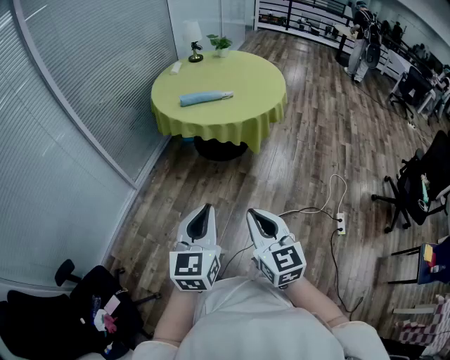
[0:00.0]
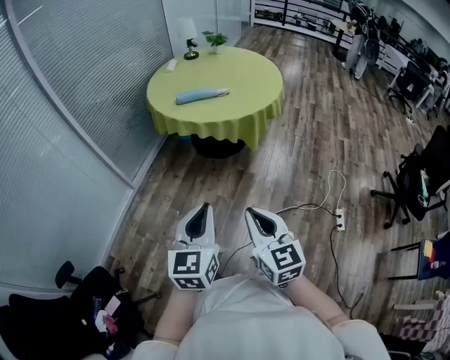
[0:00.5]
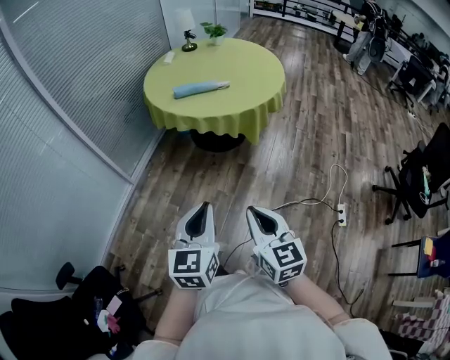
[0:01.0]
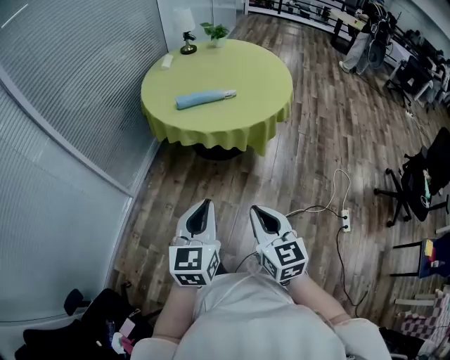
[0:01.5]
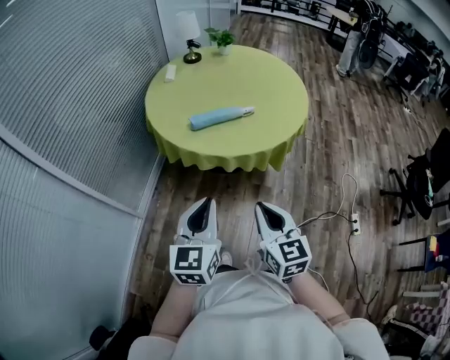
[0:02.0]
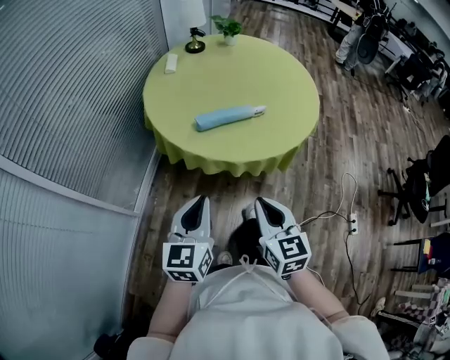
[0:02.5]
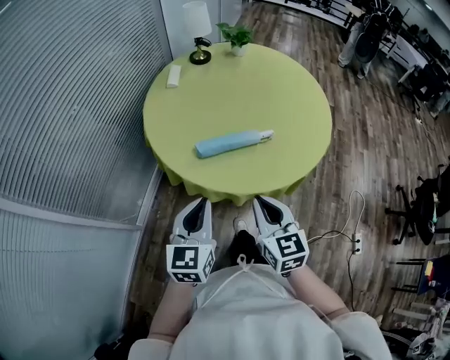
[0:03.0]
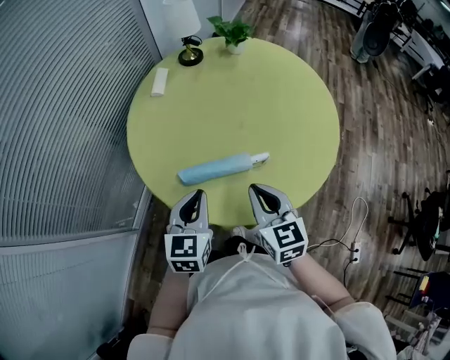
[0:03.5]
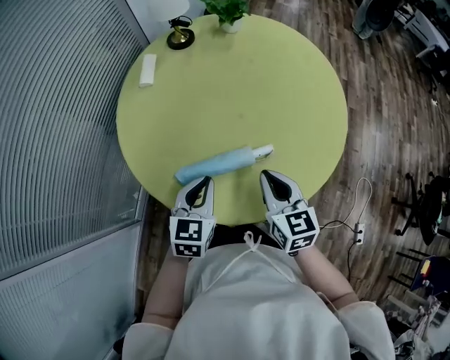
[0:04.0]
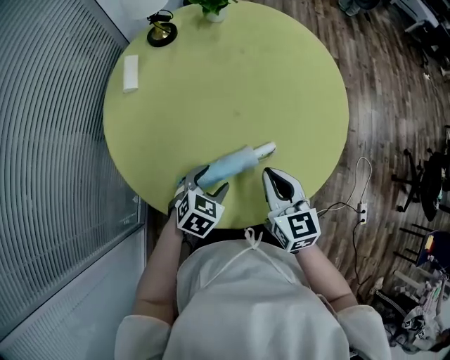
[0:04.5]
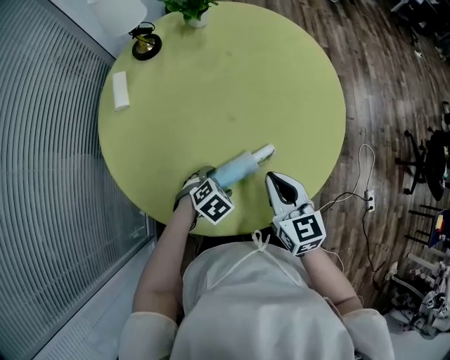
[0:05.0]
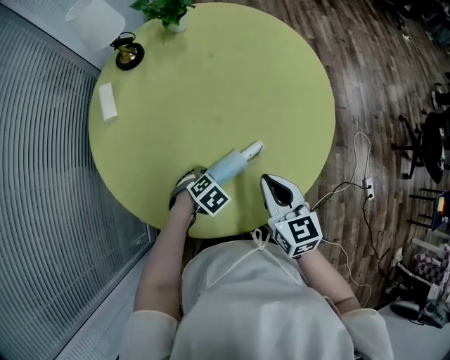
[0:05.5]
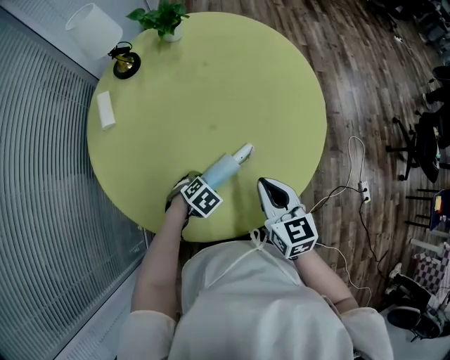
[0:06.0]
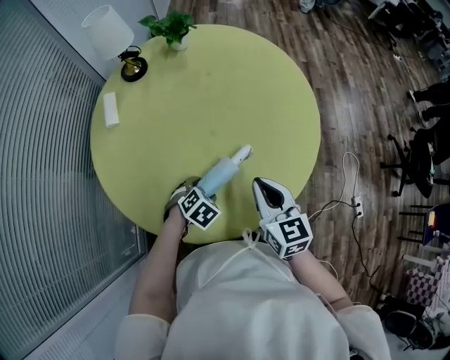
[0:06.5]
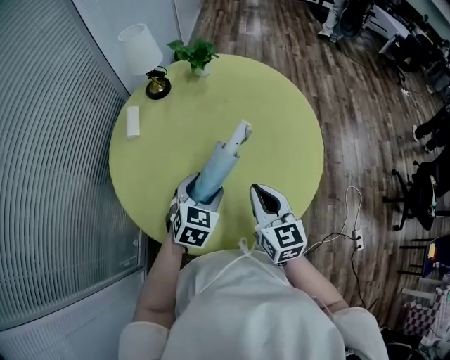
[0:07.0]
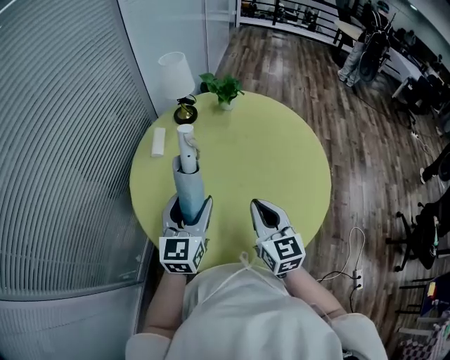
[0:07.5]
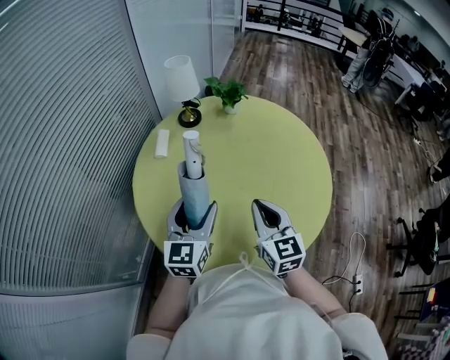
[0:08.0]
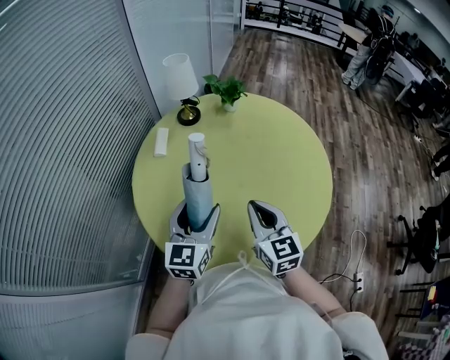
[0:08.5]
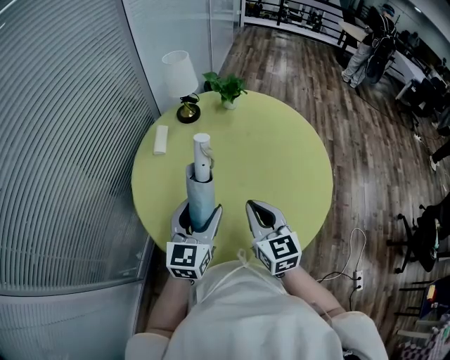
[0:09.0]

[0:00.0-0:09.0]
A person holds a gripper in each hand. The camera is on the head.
0:00.0 to 0:02.0: The grippers both shift forward and to the left by about 40 cm.
0:02.0 to 0:04.5: Both grippers are carried forward, roughly 50 cm. The left gripper shifts about 25 cm downward, points its fingers some 40 degrees further downward, and opens.
0:04.5 to 0:07.0: The right gripper travels upward by about 10 cm; the left gripper moves upward, roughly 10 cm.
0:07.0 to 0:09.0: The left gripper heads upward and to the left, covering approximately 15 cm, and turns by approximately 40 degrees. The right gripper is displaced to the left by roughly 5 cm.

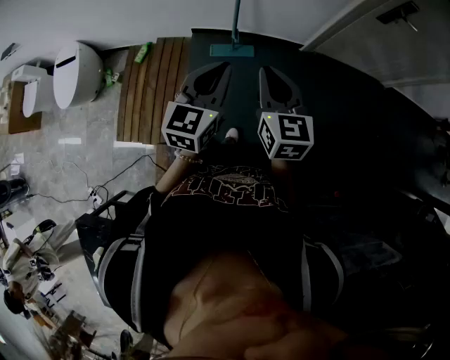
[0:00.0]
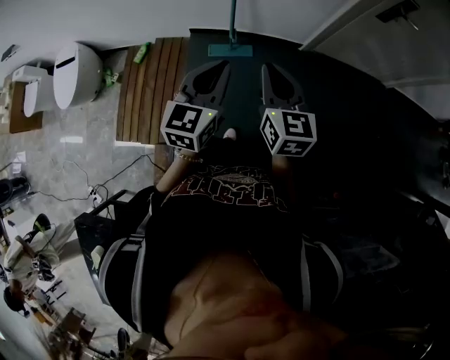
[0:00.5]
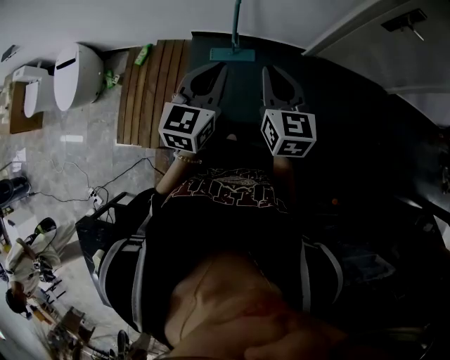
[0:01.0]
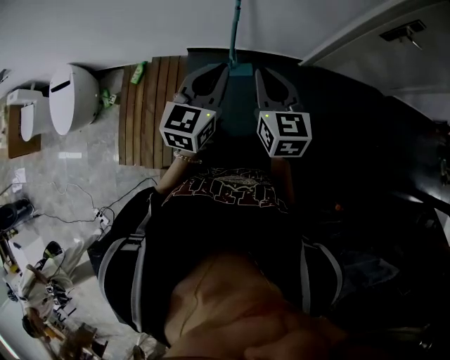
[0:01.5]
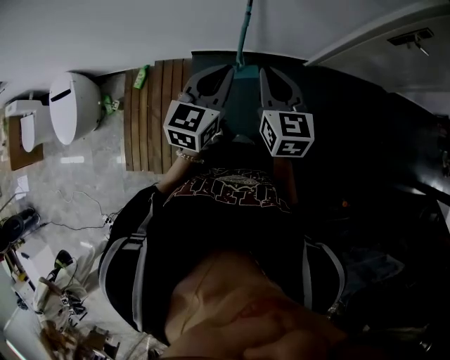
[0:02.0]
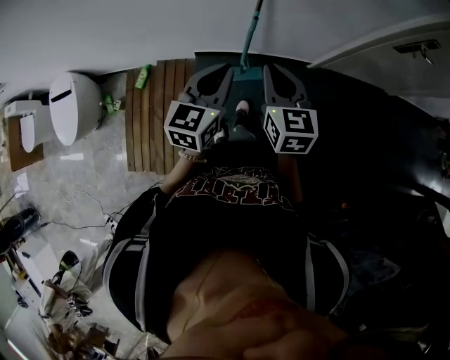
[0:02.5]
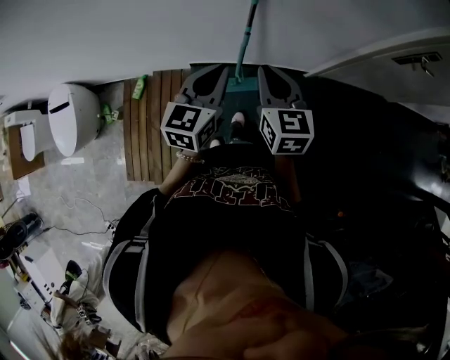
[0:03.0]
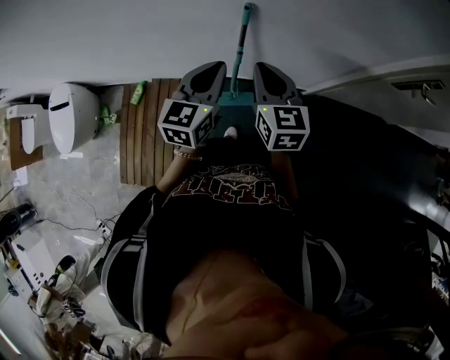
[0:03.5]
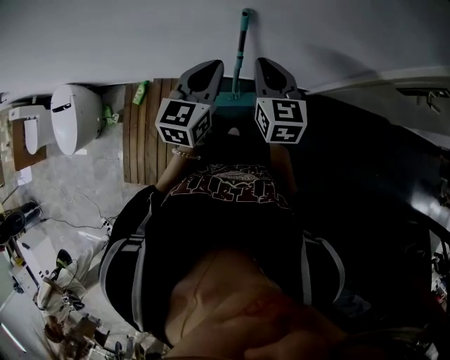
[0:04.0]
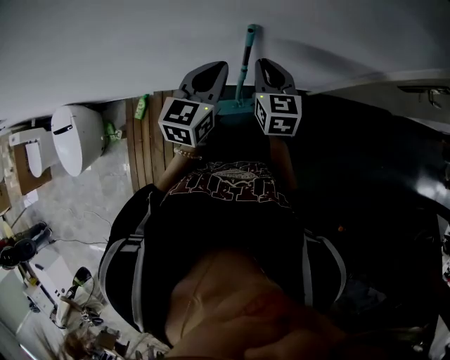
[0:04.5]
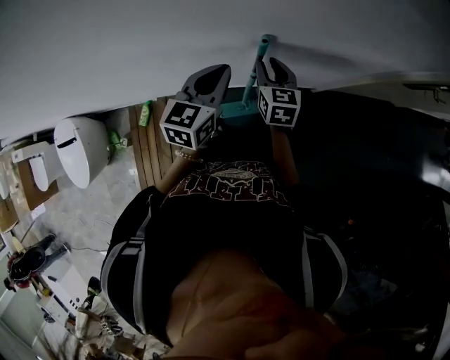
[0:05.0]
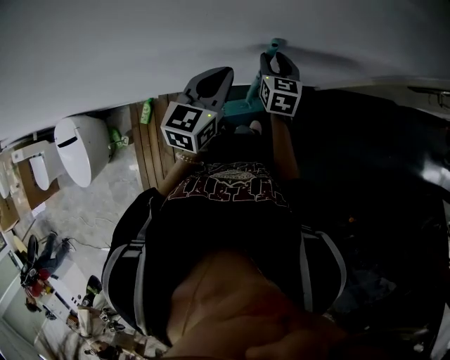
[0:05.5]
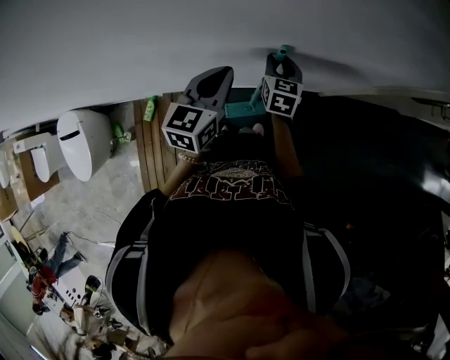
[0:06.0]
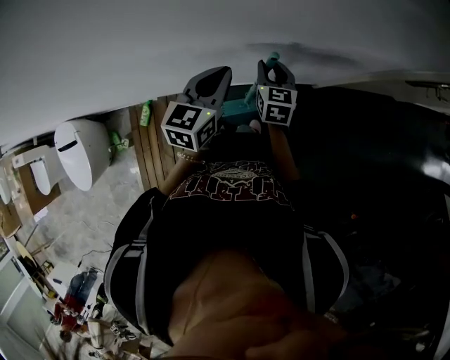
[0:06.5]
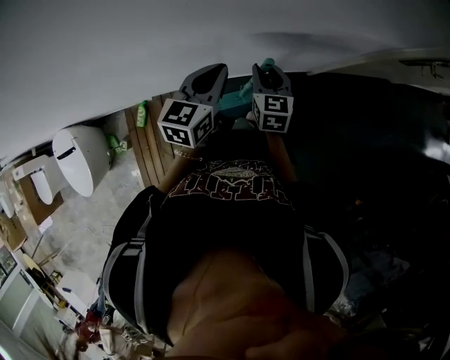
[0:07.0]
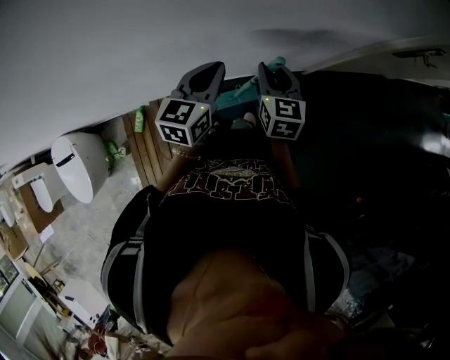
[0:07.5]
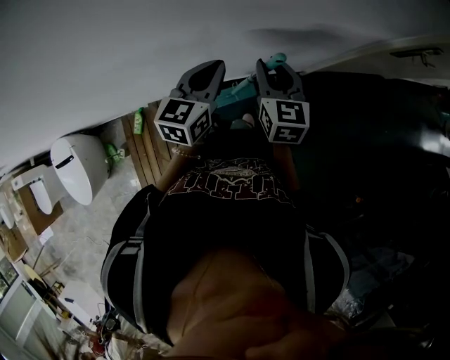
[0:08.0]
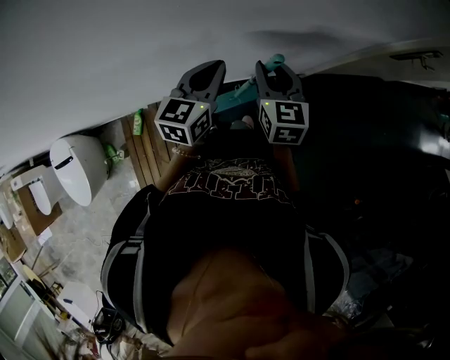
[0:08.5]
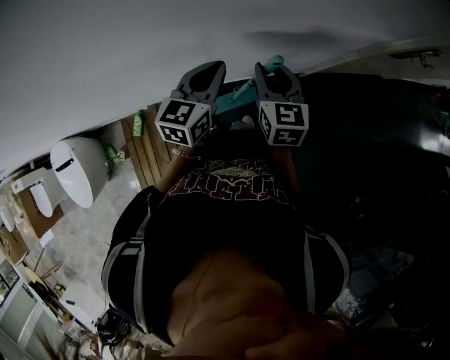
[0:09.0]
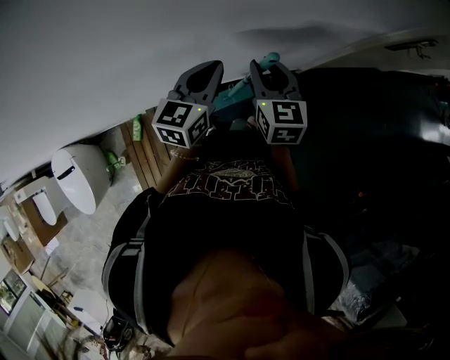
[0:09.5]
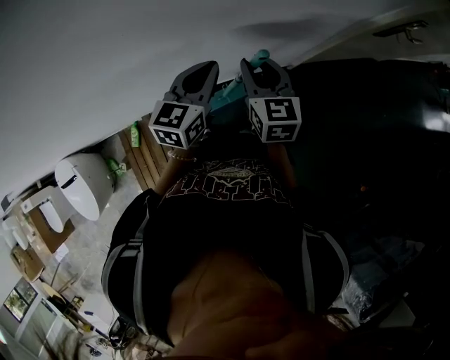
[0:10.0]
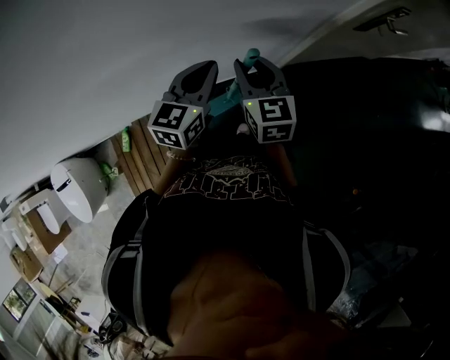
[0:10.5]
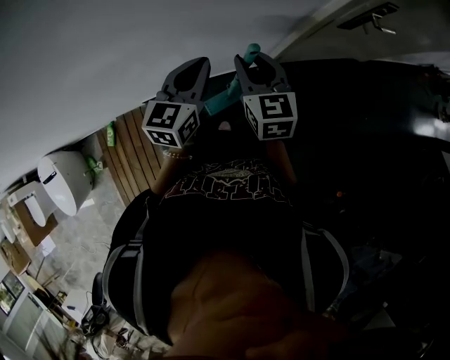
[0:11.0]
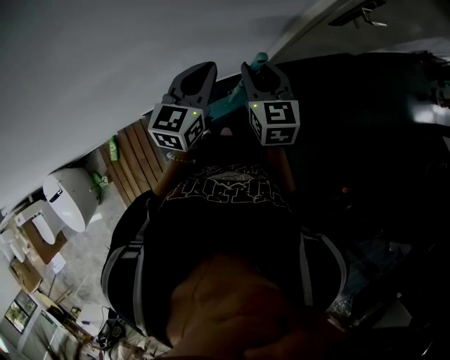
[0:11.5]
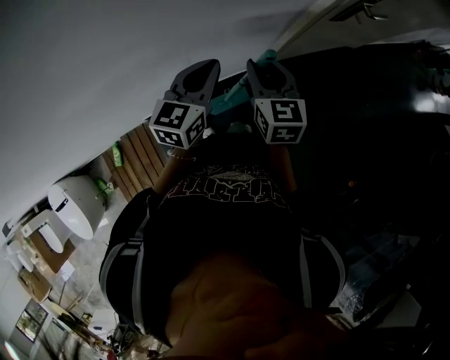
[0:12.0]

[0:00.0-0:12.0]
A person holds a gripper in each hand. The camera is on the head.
0:00.0 to 0:02.0: Both grippers move forward and to the left, some 25 cm.
0:02.0 to 0:04.0: The grippers both shift forward by approximately 30 cm.
0:04.0 to 0:06.0: The left gripper heads to the left and forward, covering some 15 cm. The right gripper goes approximately 25 cm forward, downward and to the left, swivels some 20 degrees, and opens its fingers.
0:06.0 to 0:08.0: The left gripper moves to the right, about 5 cm, while the right gripper travels backward, upward and to the right by some 15 cm.
0:08.0 to 0:10.0: Both grippers move to the right, about 5 cm.
0:10.0 to 0:12.0: The two grippers go approximately 20 cm to the right.

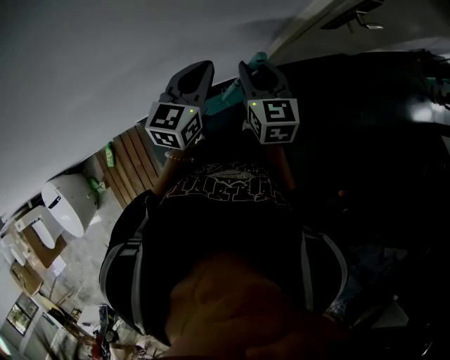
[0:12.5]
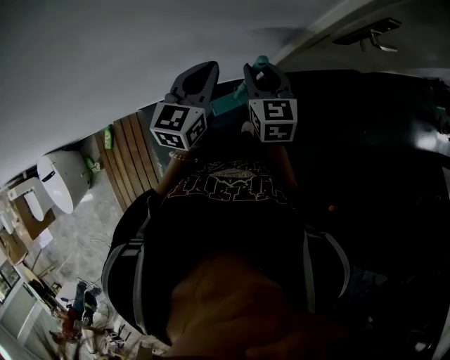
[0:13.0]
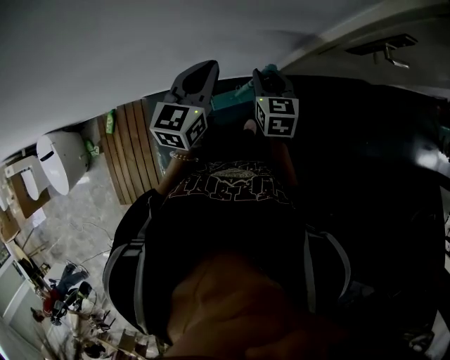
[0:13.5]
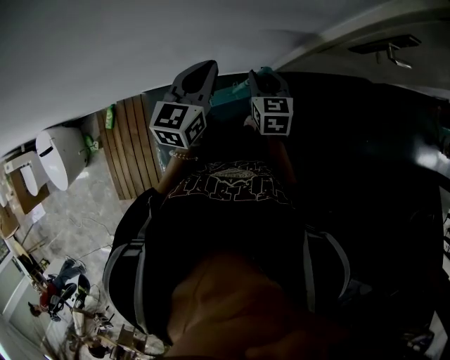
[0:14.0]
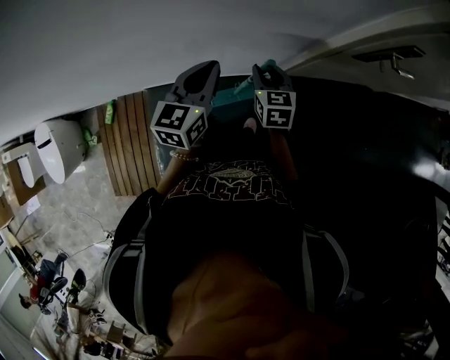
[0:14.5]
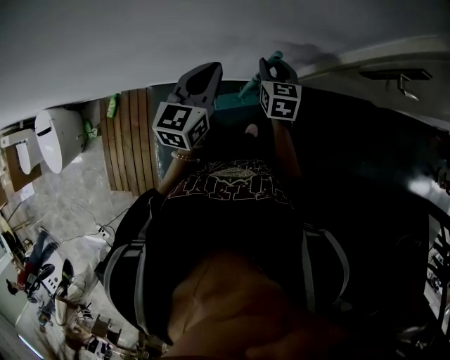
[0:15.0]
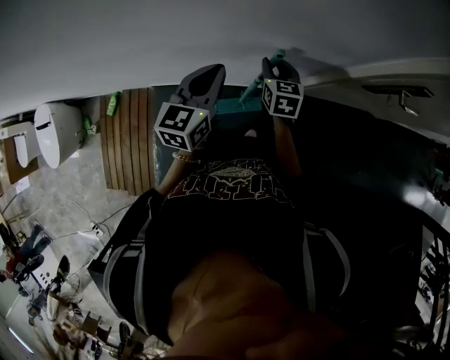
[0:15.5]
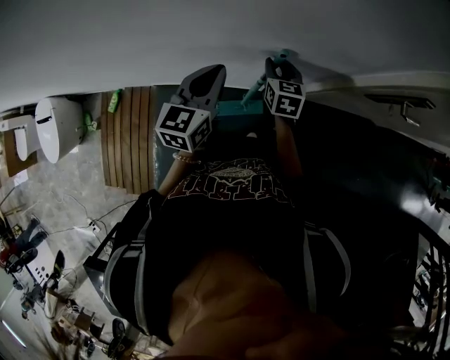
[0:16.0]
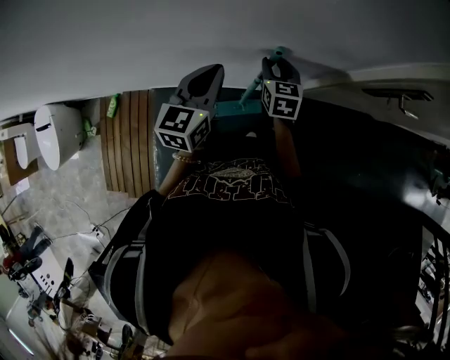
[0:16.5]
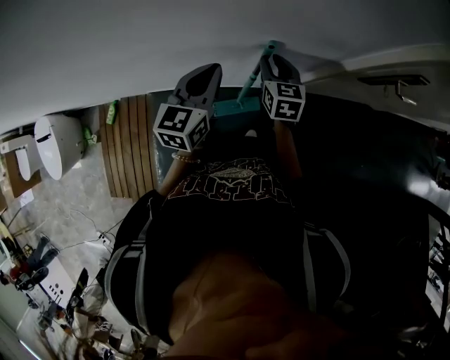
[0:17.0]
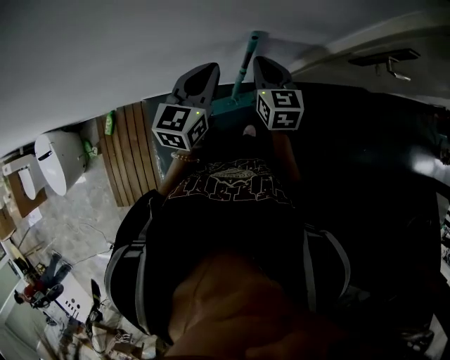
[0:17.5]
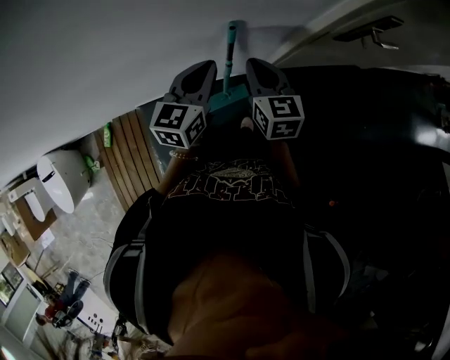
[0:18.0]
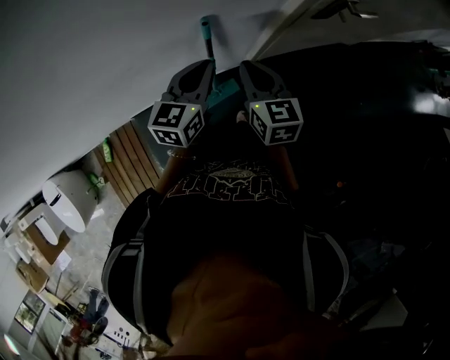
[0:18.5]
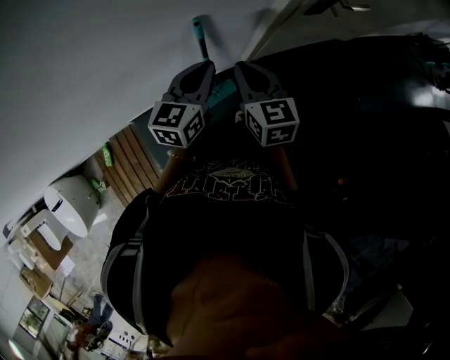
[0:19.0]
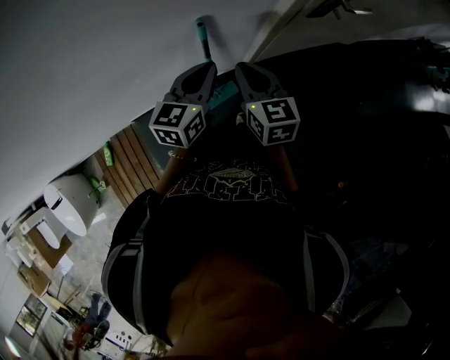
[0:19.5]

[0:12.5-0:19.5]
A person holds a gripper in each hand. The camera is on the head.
0:12.5 to 0:14.5: The right gripper travels downward by about 15 cm.
0:14.5 to 0:16.0: The left gripper goes approximately 5 cm to the left. The right gripper goes roughly 10 cm forward.
0:16.0 to 0:17.5: The right gripper is displaced upward and backward by some 10 cm, and closes its fingers.
0:17.5 to 0:19.5: The left gripper heads to the right, covering about 10 cm, while the right gripper is displaced backward and to the right by about 10 cm.
